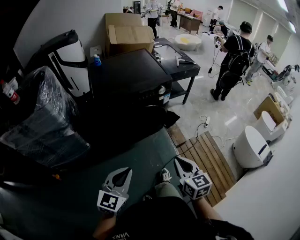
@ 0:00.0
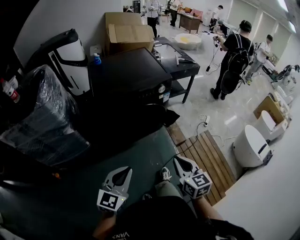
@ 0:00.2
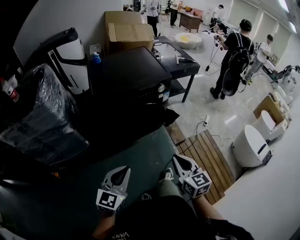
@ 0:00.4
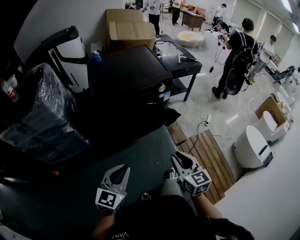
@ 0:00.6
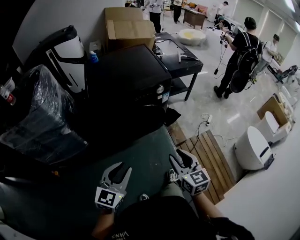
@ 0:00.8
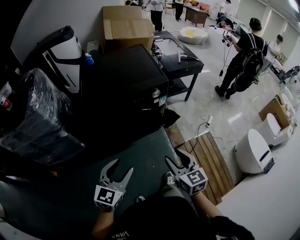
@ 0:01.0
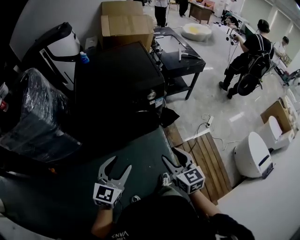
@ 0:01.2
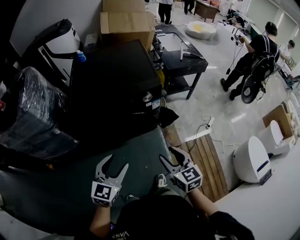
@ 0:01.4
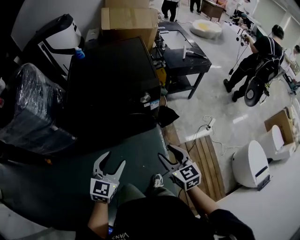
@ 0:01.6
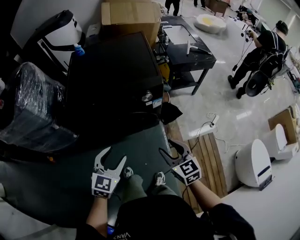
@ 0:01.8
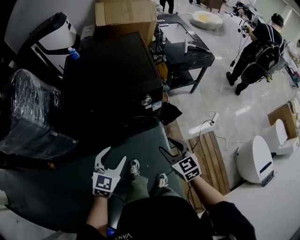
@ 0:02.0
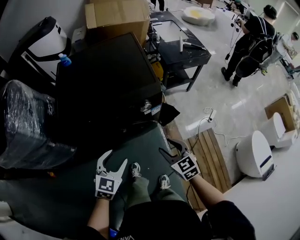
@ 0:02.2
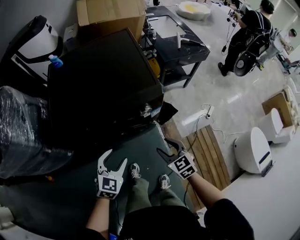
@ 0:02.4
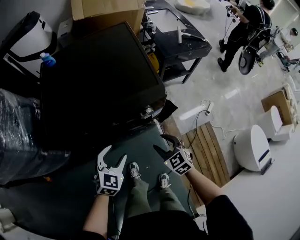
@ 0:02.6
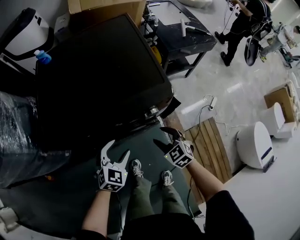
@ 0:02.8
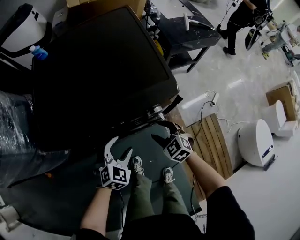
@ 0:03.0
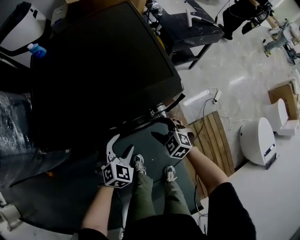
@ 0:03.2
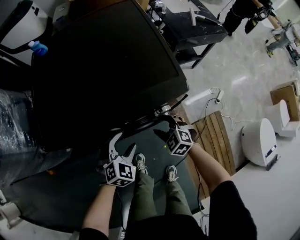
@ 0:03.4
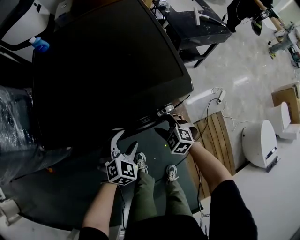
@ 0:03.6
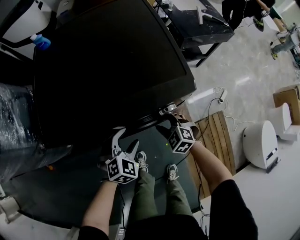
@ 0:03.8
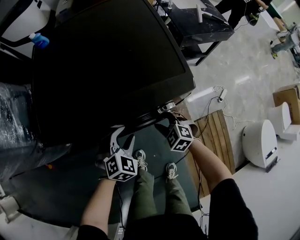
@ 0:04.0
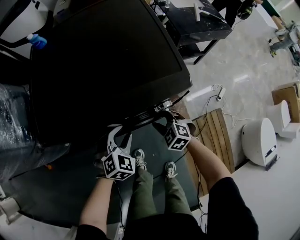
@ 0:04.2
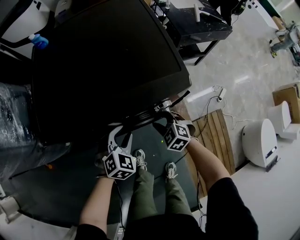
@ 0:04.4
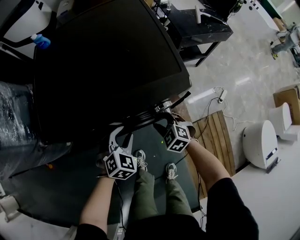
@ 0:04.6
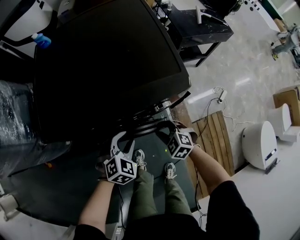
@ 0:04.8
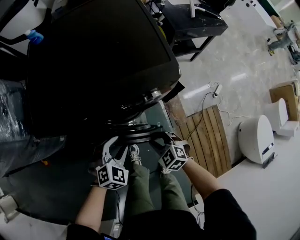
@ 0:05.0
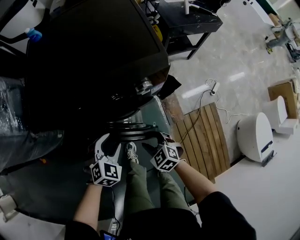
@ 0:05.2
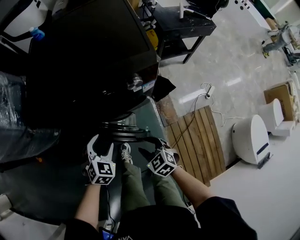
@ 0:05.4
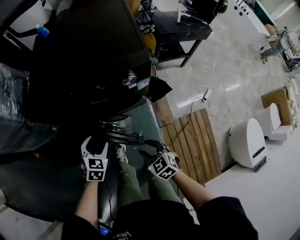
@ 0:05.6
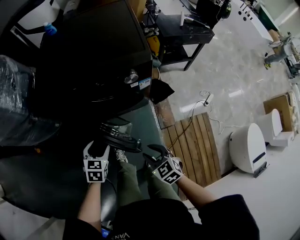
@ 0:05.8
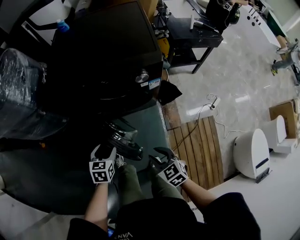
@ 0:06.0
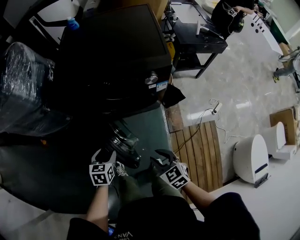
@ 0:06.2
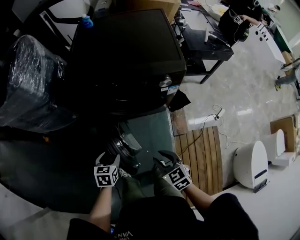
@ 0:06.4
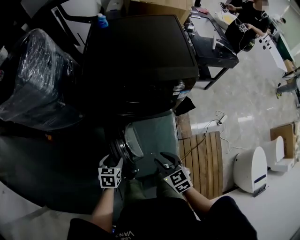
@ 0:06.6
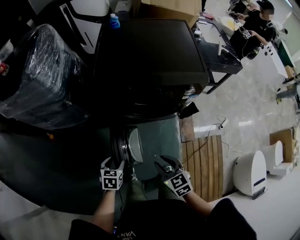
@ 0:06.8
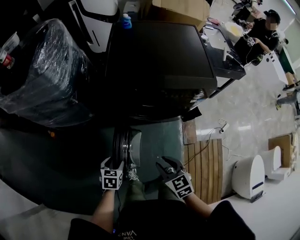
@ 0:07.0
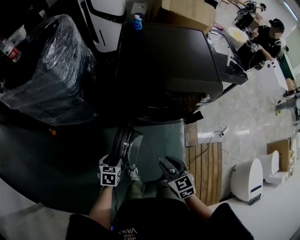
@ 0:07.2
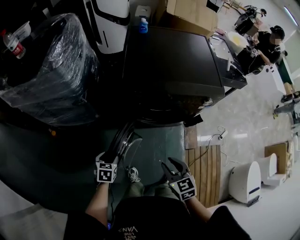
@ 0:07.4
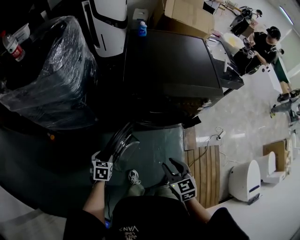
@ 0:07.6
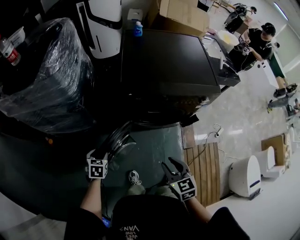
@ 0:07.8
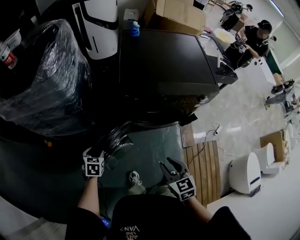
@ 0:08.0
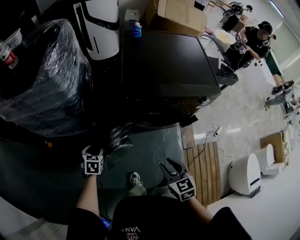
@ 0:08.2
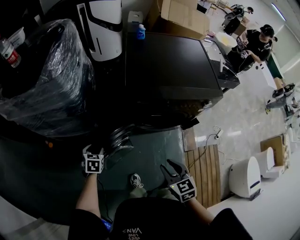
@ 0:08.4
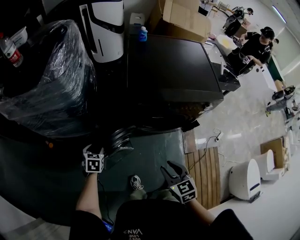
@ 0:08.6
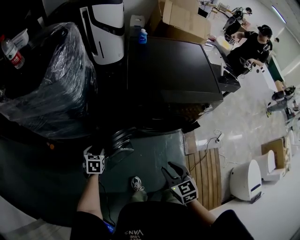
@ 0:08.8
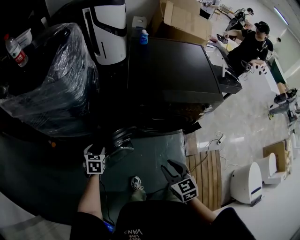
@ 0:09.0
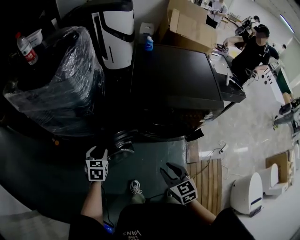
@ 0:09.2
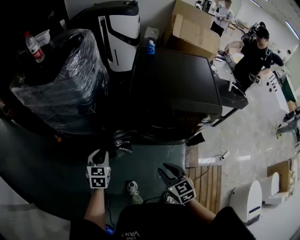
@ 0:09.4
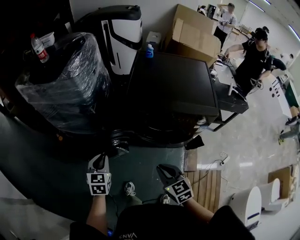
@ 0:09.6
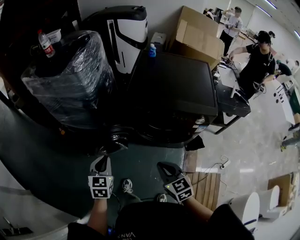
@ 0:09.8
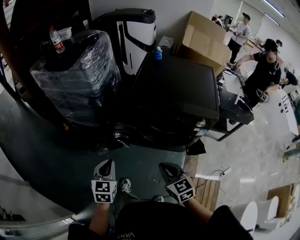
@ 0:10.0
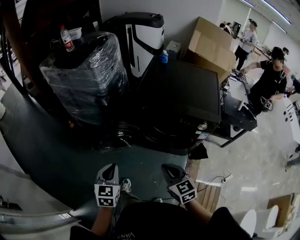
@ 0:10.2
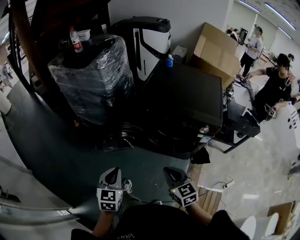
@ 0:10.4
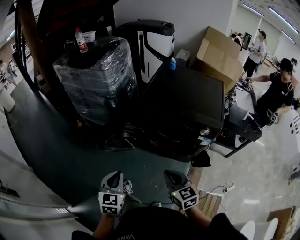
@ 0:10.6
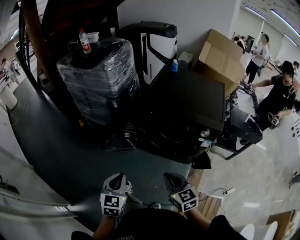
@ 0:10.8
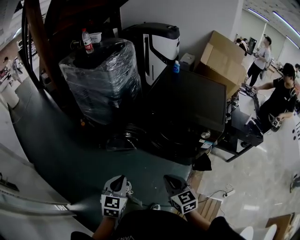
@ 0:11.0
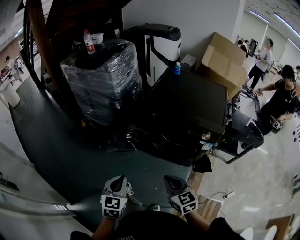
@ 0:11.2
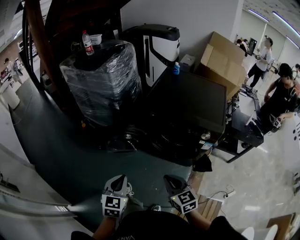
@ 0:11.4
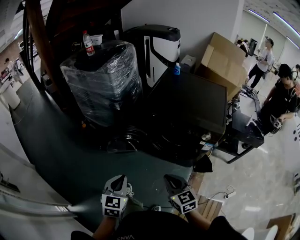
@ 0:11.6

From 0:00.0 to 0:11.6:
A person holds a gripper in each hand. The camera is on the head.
From 0:00.0 to 0:01.4: Both grippers move forward and to the right, some 25 cm. The right gripper opens up; the left gripper opens up.
From 0:01.4 to 0:02.8: The grippers both shift forward and downward by approximately 35 cm. The right gripper turns by approximately 30 degrees; the left gripper changes its angle by some 30 degrees.
From 0:02.8 to 0:04.4: The right gripper travels downward by some 5 cm, while the left gripper moves about 5 cm, and closes up.
From 0:04.4 to 0:05.8: Both grippers travel together backward, roughly 25 cm. The right gripper changes its angle by about 20 degrees. The left gripper changes its angle by roughly 40 degrees, and opens.
From 0:05.8 to 0:07.2: The left gripper moves to the left, roughly 30 cm, while the right gripper goes some 25 cm to the left and upward.
From 0:07.2 to 0:08.8: The right gripper moves to the left, about 5 cm. The left gripper is displaced to the left and forward by roughly 20 cm.
From 0:08.8 to 0:10.2: The left gripper is displaced backward, upward and to the right by some 40 cm, changes its angle by about 30 degrees, and closes up, while the right gripper shifts about 15 cm to the right, backward and upward, swivels some 30 degrees, and closes its fingers.
From 0:10.2 to 0:11.6: The right gripper goes some 5 cm backward. Meanwhile the left gripper goes roughly 10 cm backward.

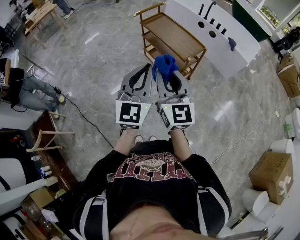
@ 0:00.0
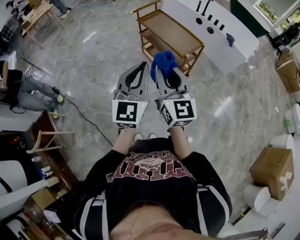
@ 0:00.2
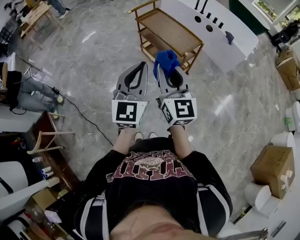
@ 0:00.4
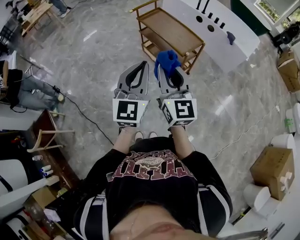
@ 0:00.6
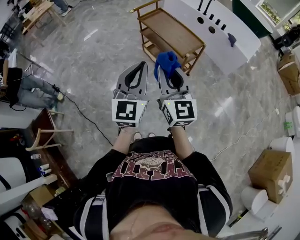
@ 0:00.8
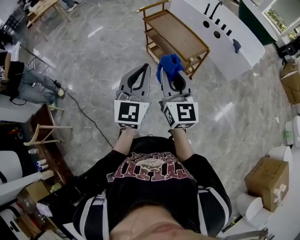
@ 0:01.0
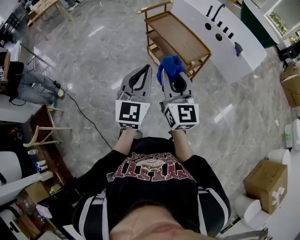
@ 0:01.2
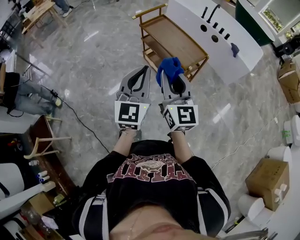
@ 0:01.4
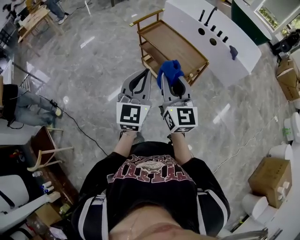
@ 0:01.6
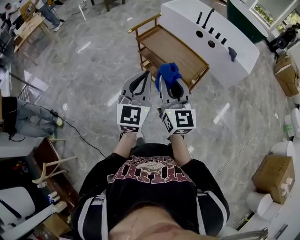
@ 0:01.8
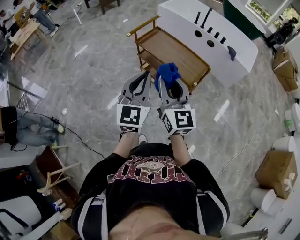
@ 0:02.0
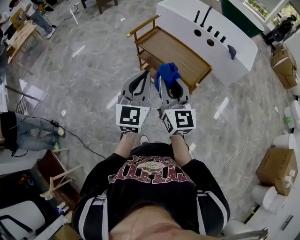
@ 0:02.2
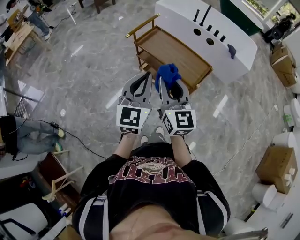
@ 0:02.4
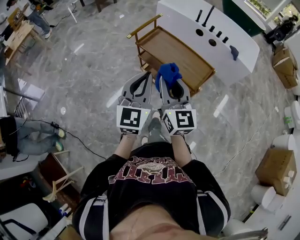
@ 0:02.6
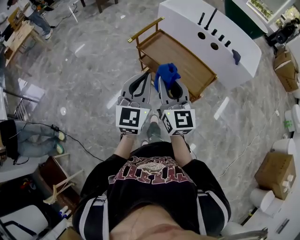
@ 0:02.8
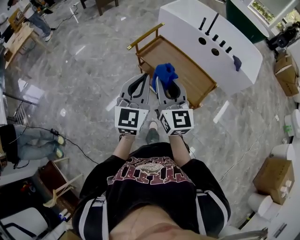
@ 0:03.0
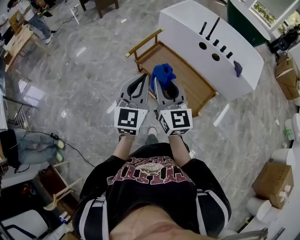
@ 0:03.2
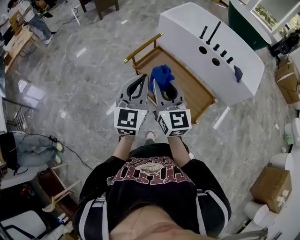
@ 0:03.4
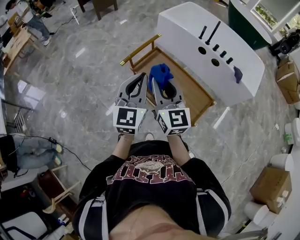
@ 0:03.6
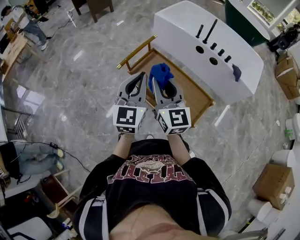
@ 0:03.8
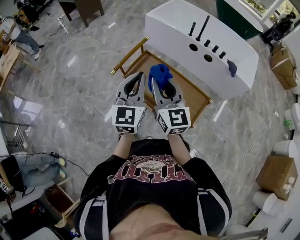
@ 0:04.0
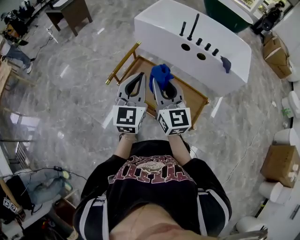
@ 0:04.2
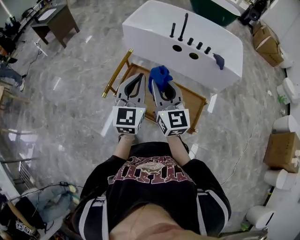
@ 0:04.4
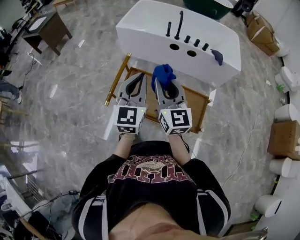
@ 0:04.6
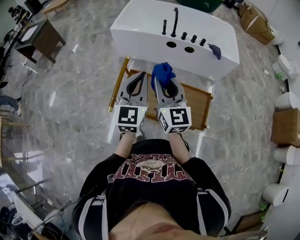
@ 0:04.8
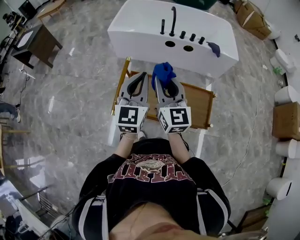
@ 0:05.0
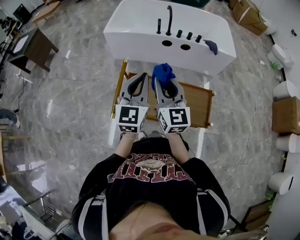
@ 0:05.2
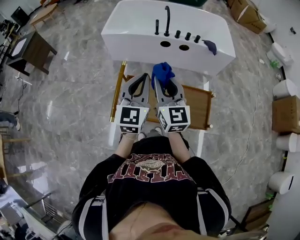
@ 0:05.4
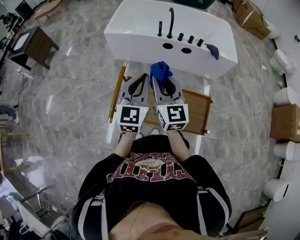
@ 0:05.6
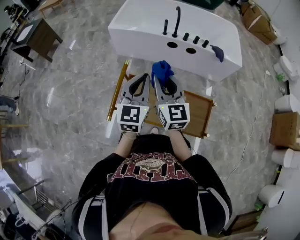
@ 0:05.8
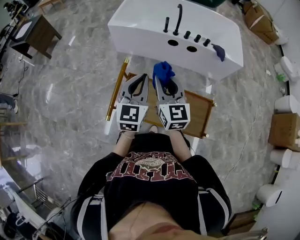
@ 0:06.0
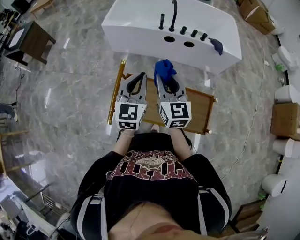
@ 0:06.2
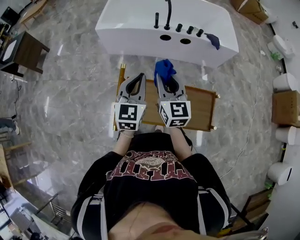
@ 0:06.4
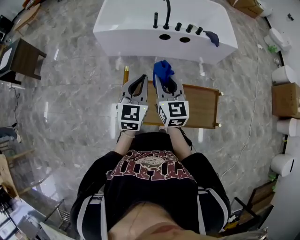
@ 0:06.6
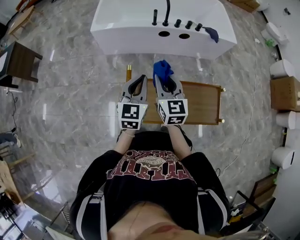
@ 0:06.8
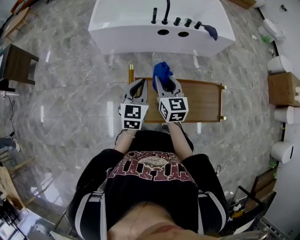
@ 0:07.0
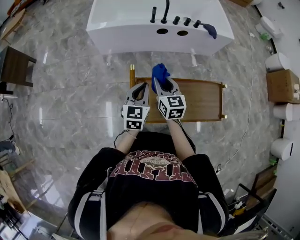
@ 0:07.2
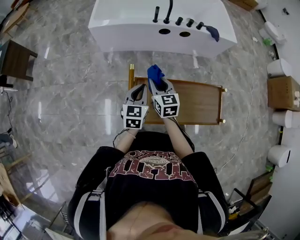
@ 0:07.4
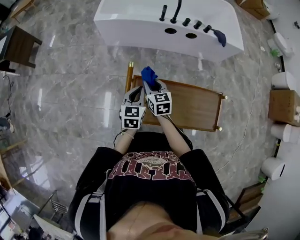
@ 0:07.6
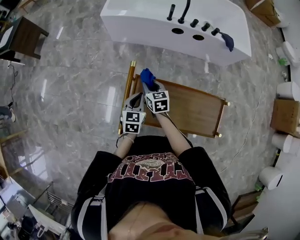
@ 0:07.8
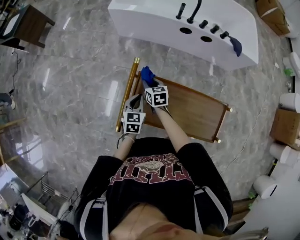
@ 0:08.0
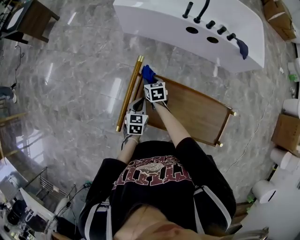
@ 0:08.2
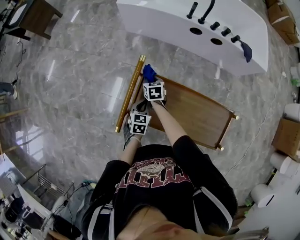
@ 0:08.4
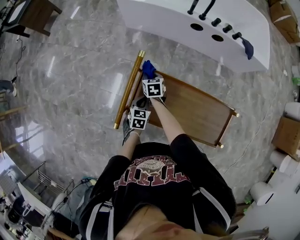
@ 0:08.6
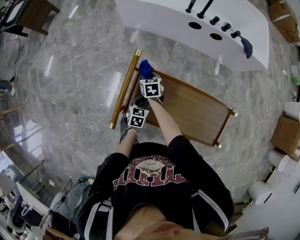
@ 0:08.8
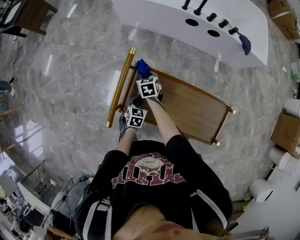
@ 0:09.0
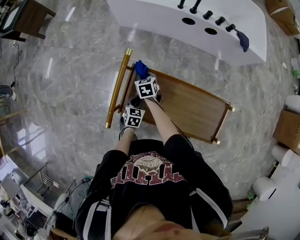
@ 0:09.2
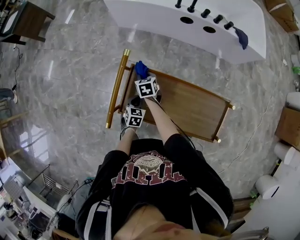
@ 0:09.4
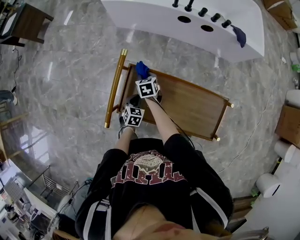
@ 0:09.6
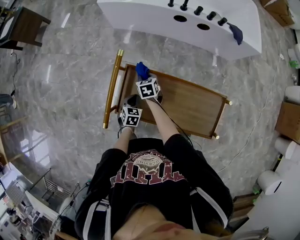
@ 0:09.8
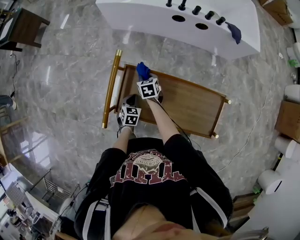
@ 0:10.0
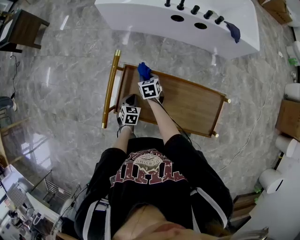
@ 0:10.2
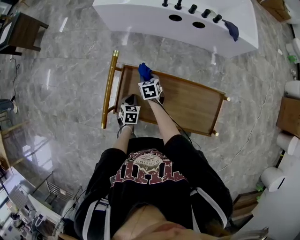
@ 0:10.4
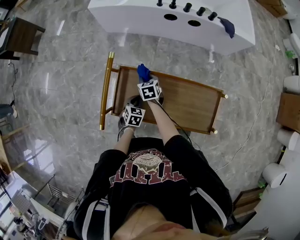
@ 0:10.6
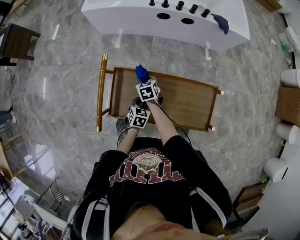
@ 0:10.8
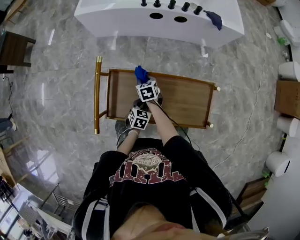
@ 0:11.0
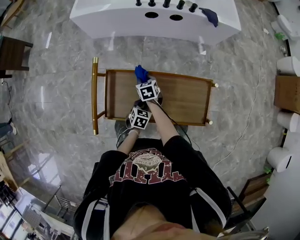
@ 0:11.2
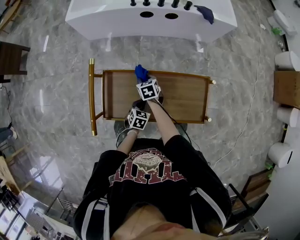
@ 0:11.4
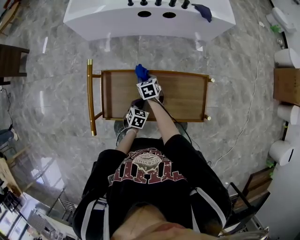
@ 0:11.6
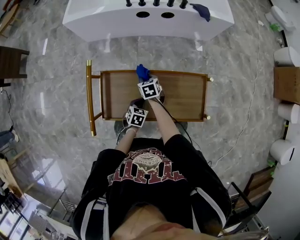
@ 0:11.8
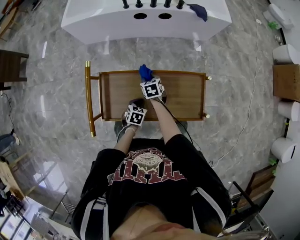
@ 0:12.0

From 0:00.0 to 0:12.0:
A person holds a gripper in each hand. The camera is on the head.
From 0:00.0 to 0:01.6: The two grippers go approximately 15 cm forward.
From 0:01.6 to 0:03.0: The grippers both shift forward by approximately 25 cm.
From 0:03.0 to 0:04.4: The two grippers go some 30 cm forward.
From 0:04.4 to 0:06.0: Both grippers travel together forward, about 15 cm.
From 0:06.0 to 0:07.6: Both grippers travel together downward and to the left, roughly 25 cm. The right gripper turns by about 30 degrees. The left gripper turns by approximately 20 degrees.
From 0:07.6 to 0:09.0: The two grippers go approximately 20 cm downward. The right gripper rotates roughly 20 degrees; the left gripper turns by approximately 20 degrees.
From 0:09.0 to 0:10.4: The right gripper moves to the right, about 10 cm.
From 0:10.4 to 0:12.0: The grippers both shift to the right by some 15 cm. The left gripper changes its angle by some 20 degrees.
